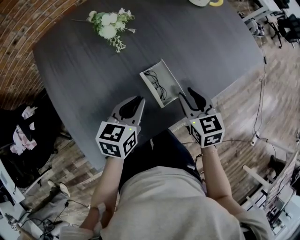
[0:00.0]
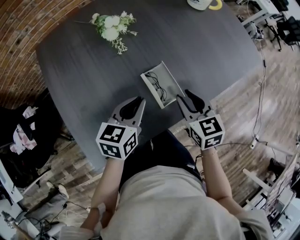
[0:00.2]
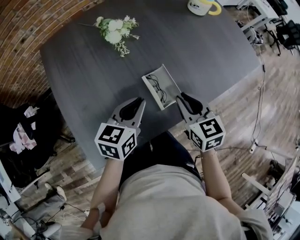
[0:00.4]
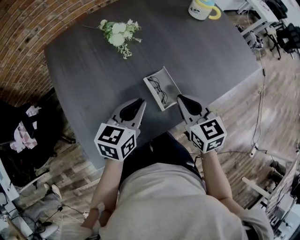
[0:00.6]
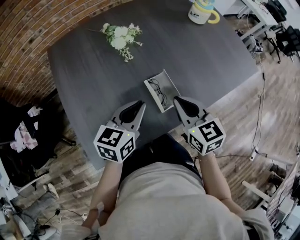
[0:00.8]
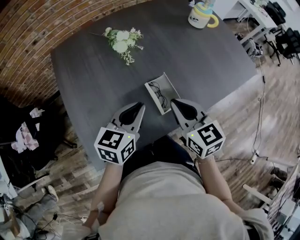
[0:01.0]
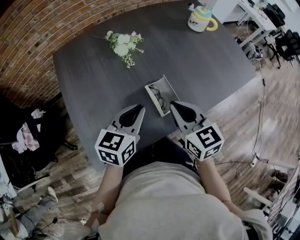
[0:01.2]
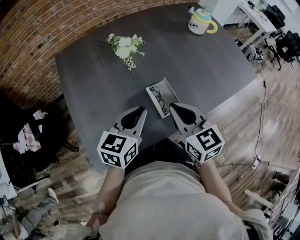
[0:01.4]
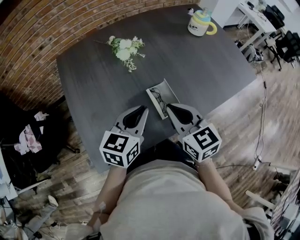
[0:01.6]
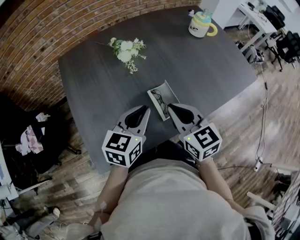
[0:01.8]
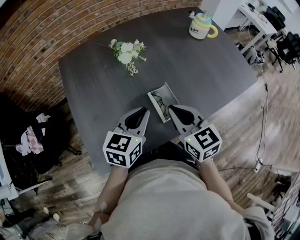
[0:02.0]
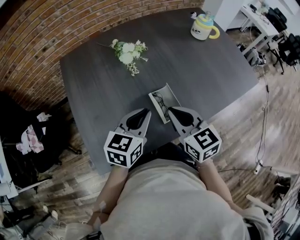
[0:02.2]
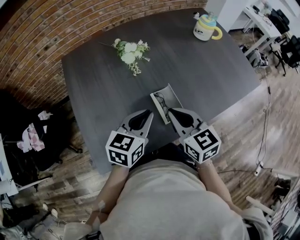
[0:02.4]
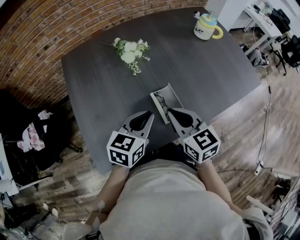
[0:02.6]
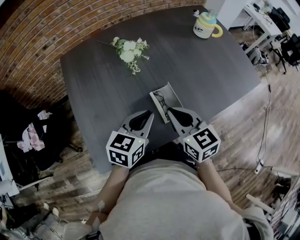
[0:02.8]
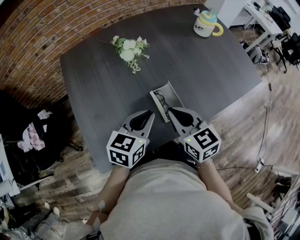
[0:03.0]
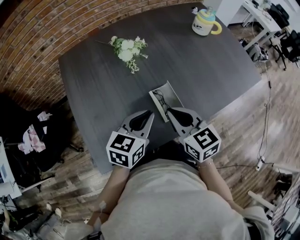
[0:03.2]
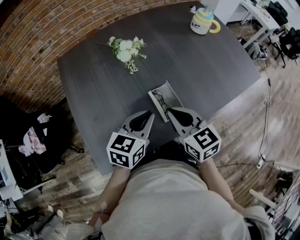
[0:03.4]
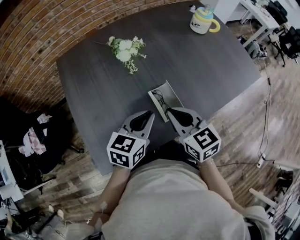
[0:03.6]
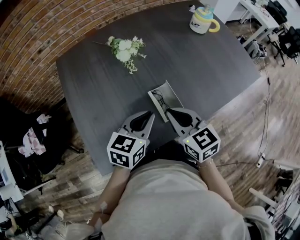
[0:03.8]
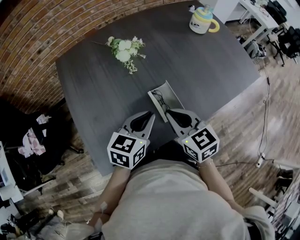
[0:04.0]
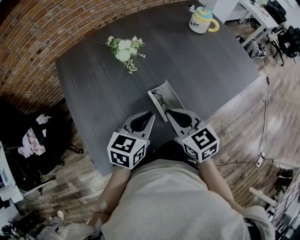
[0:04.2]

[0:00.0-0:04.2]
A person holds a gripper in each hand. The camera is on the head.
0:00.0 to 0:01.4: The right gripper goes roughly 15 cm upward and to the left, rotates approximately 20 degrees, and closes up. Meanwhile the left gripper is displaced upward by some 10 cm.
0:01.4 to 0:04.2: The grippers stay close to where they were, moving slightly.

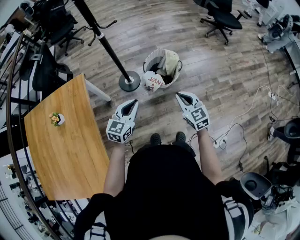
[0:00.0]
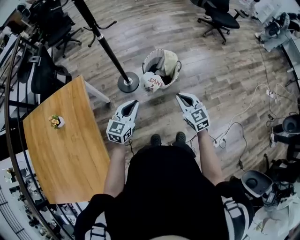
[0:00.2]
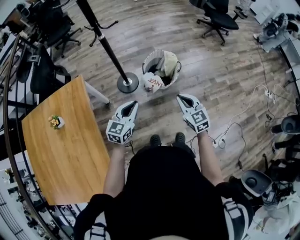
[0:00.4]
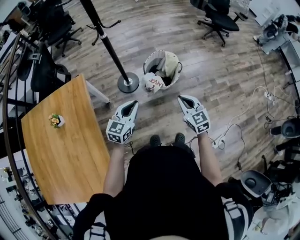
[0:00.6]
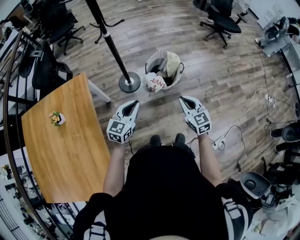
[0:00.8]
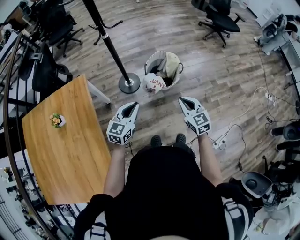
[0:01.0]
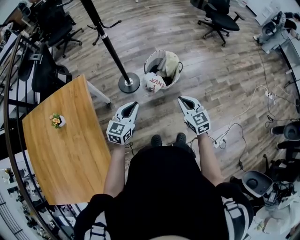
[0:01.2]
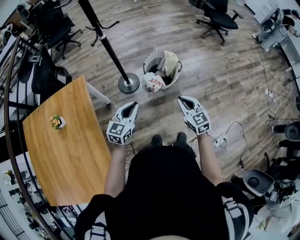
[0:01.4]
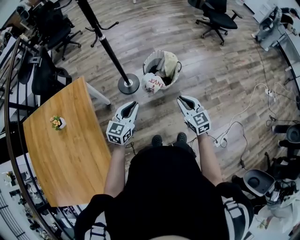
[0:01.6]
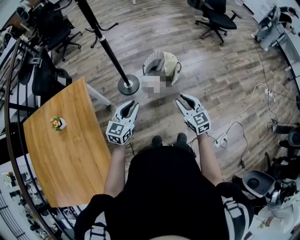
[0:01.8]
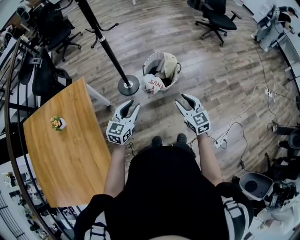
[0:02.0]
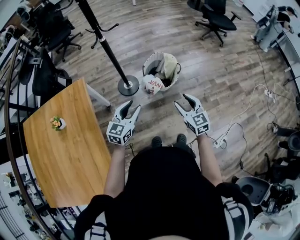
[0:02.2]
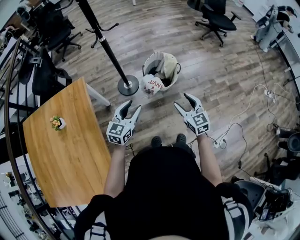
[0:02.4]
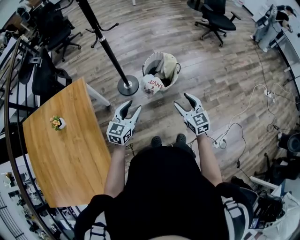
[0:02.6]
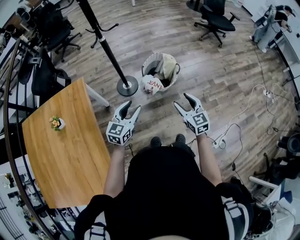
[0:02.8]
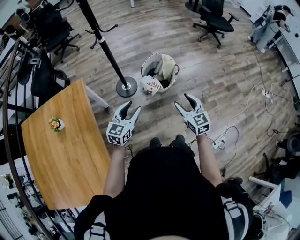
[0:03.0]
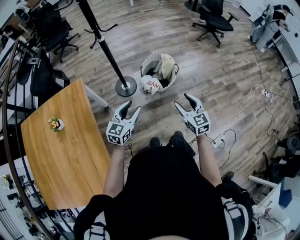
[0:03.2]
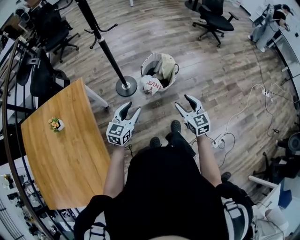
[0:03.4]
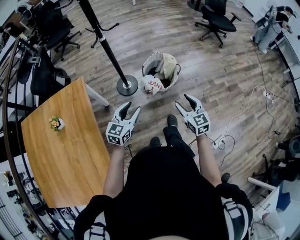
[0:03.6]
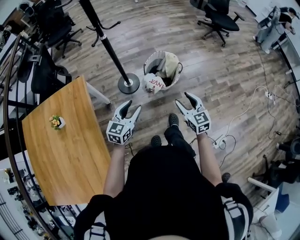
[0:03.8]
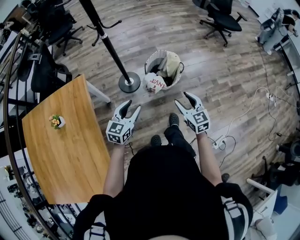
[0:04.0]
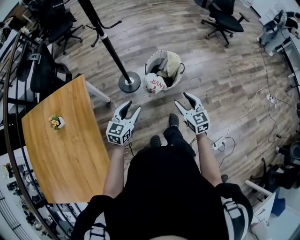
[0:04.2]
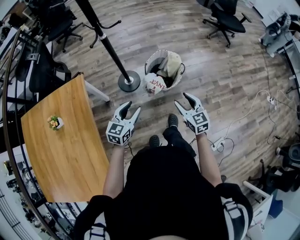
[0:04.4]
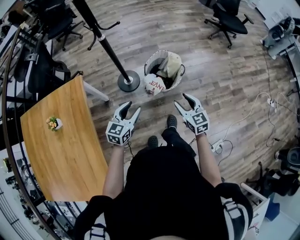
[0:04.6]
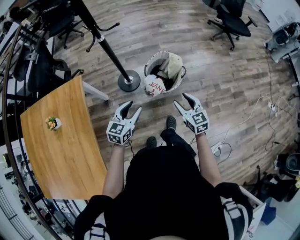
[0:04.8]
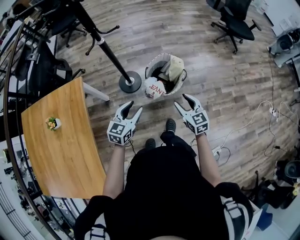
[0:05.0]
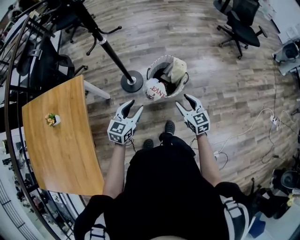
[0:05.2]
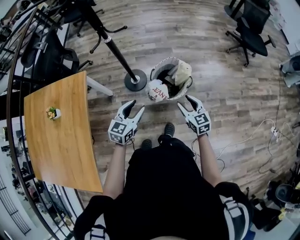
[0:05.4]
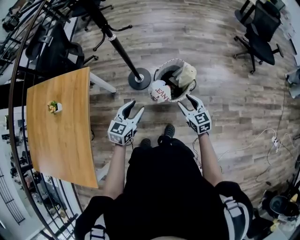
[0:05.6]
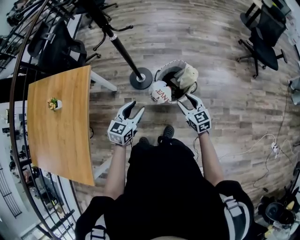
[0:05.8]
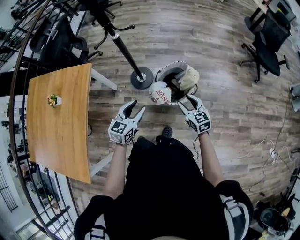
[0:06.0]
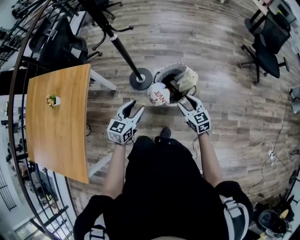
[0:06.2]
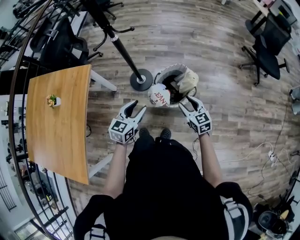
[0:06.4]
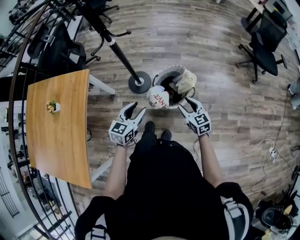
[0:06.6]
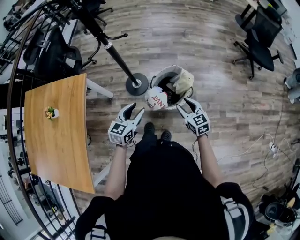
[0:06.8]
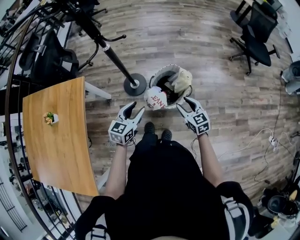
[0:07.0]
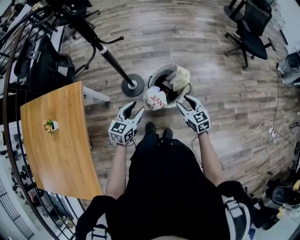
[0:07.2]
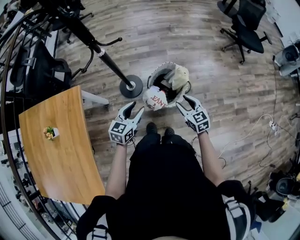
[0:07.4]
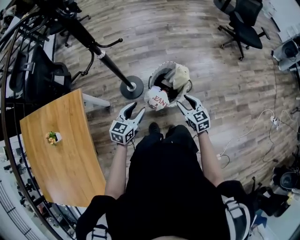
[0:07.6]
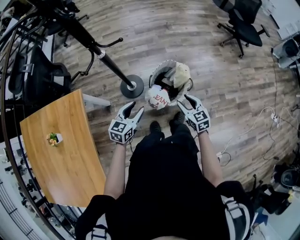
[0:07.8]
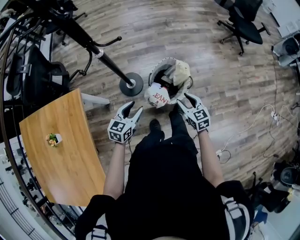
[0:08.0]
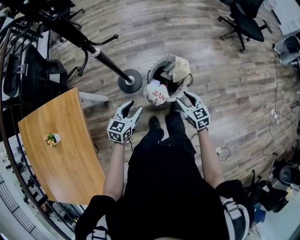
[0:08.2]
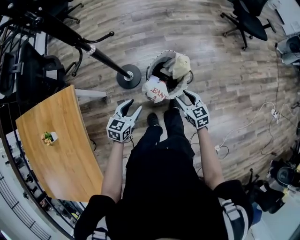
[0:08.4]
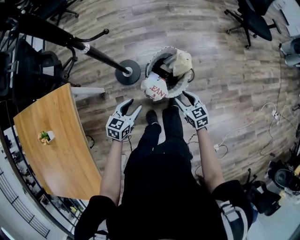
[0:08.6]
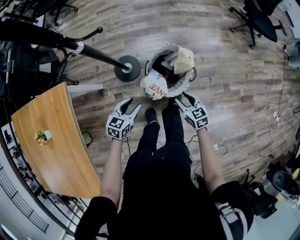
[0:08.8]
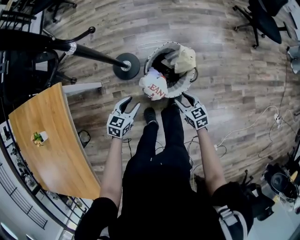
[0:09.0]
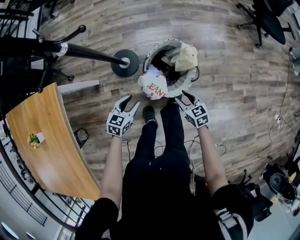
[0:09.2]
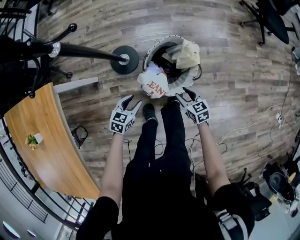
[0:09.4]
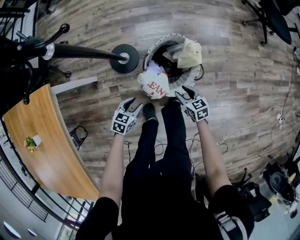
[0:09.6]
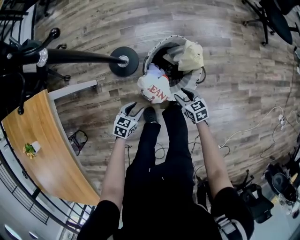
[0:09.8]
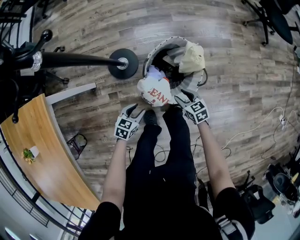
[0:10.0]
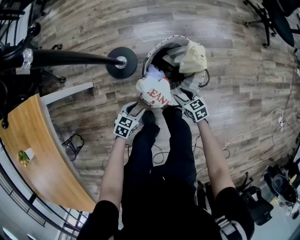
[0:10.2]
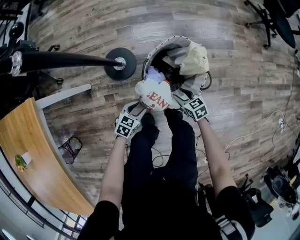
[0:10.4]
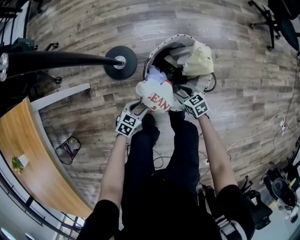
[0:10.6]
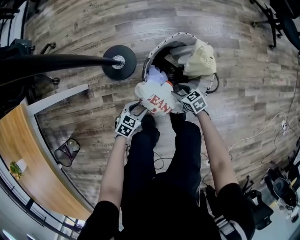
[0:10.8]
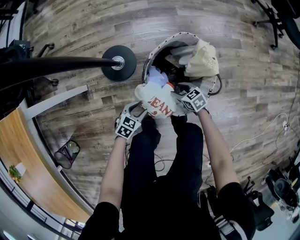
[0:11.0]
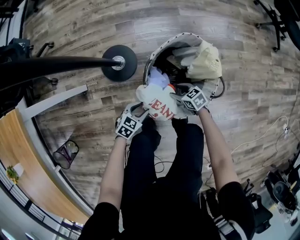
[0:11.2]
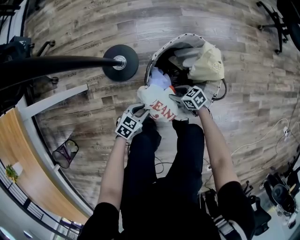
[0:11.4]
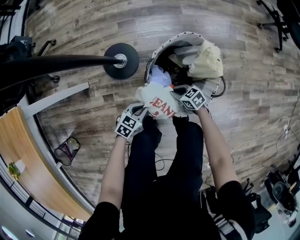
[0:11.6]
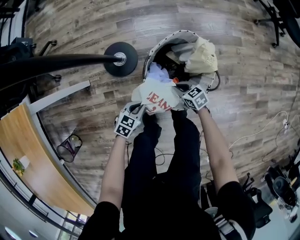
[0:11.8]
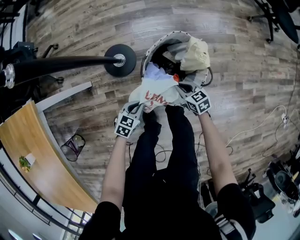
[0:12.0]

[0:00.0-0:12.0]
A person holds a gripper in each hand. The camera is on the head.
0:00.0 to 0:01.6: The grippers make only small movements.
0:01.6 to 0:03.0: The left gripper opens up, while the right gripper opens up.
0:03.0 to 0:04.4: The grippers both shift forward by roughly 5 cm.
0:04.4 to 0:06.0: The grippers both shift forward and to the right by approximately 15 cm. The right gripper swivels approximately 20 degrees.
0:06.0 to 0:07.6: The left gripper travels forward by approximately 10 cm.
0:07.6 to 0:09.0: The two grippers go approximately 20 cm downward.
0:09.0 to 0:10.4: The grippers both shift downward by roughly 25 cm.
0:10.4 to 0:12.0: The right gripper travels downward and back again, approximately 15 cm each way, and closes its fingers; the left gripper travels downward and back again, approximately 10 cm each way, and closes up.

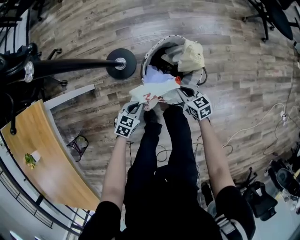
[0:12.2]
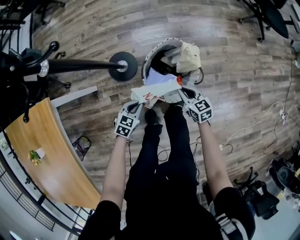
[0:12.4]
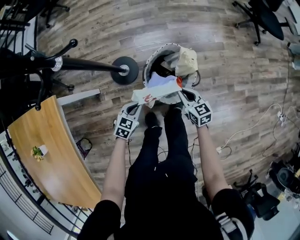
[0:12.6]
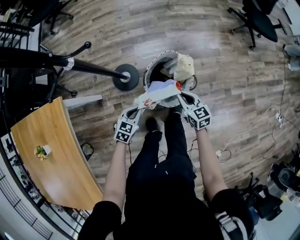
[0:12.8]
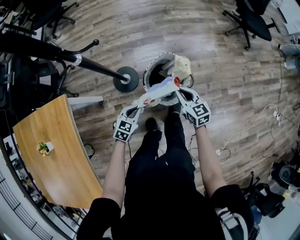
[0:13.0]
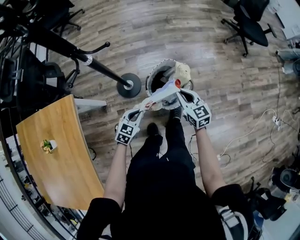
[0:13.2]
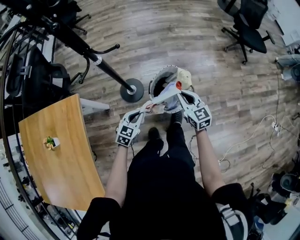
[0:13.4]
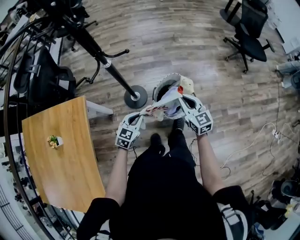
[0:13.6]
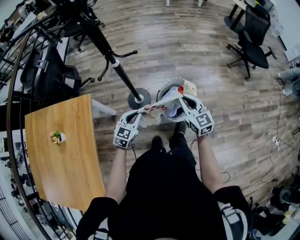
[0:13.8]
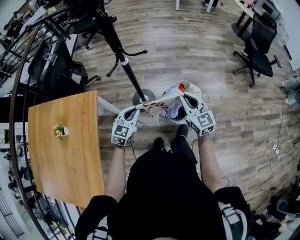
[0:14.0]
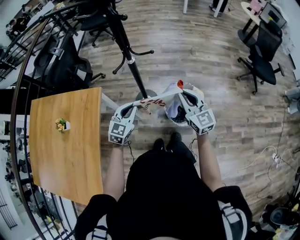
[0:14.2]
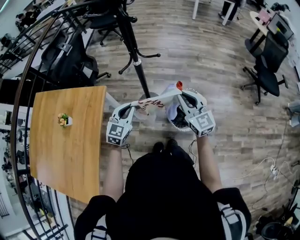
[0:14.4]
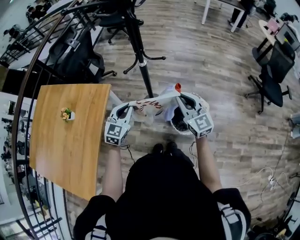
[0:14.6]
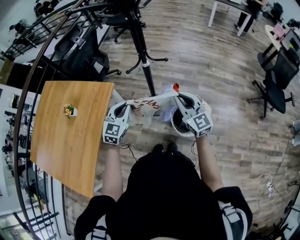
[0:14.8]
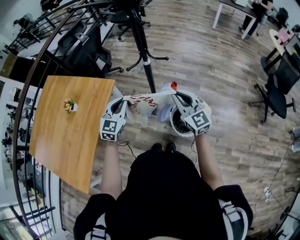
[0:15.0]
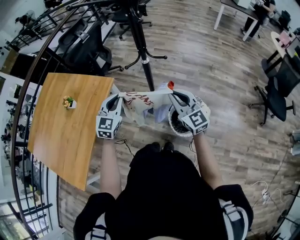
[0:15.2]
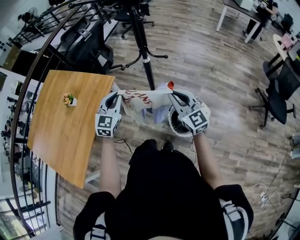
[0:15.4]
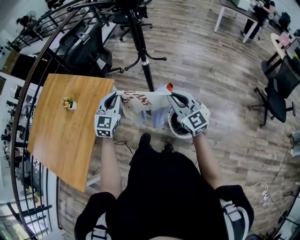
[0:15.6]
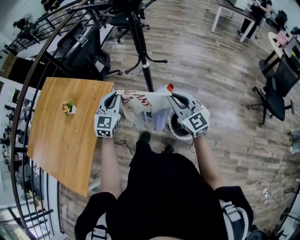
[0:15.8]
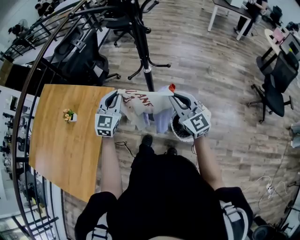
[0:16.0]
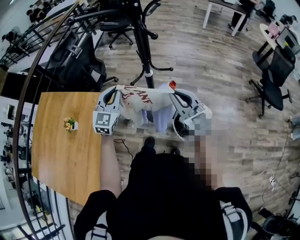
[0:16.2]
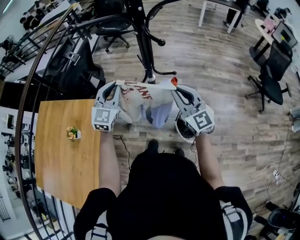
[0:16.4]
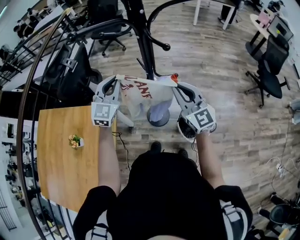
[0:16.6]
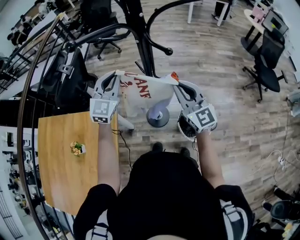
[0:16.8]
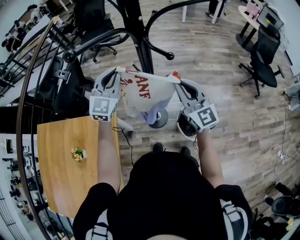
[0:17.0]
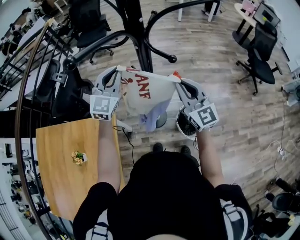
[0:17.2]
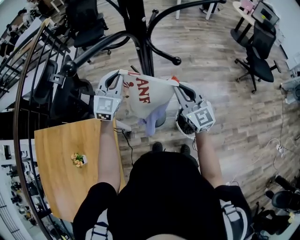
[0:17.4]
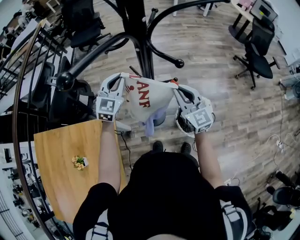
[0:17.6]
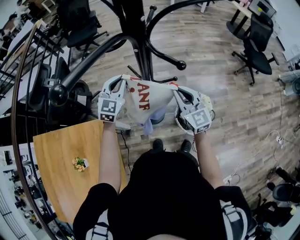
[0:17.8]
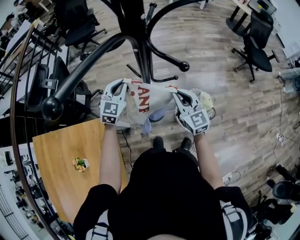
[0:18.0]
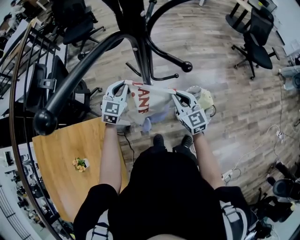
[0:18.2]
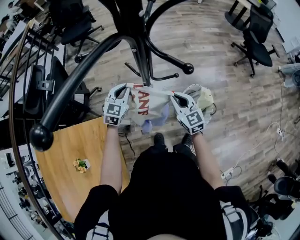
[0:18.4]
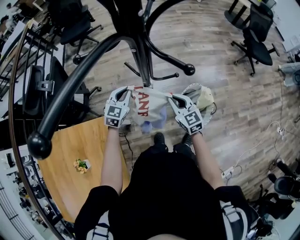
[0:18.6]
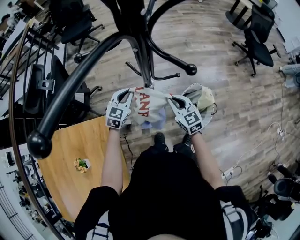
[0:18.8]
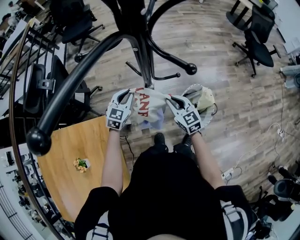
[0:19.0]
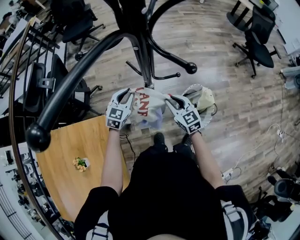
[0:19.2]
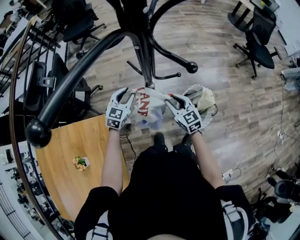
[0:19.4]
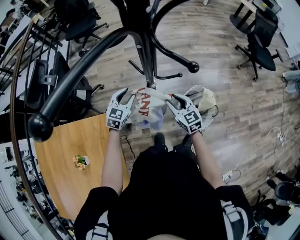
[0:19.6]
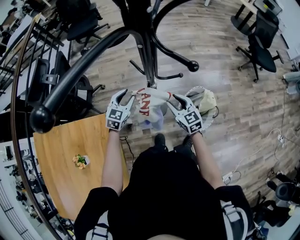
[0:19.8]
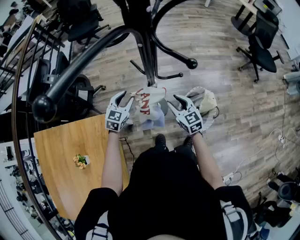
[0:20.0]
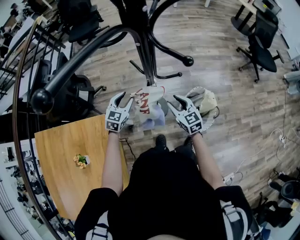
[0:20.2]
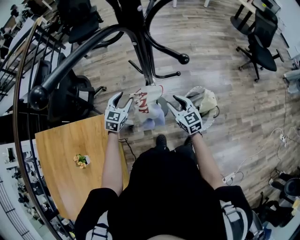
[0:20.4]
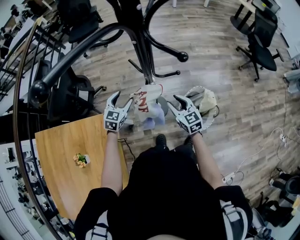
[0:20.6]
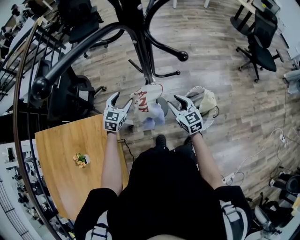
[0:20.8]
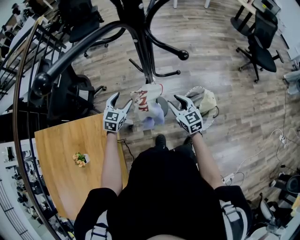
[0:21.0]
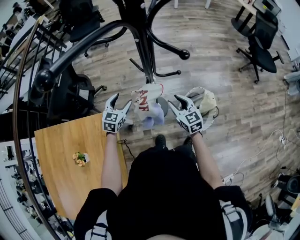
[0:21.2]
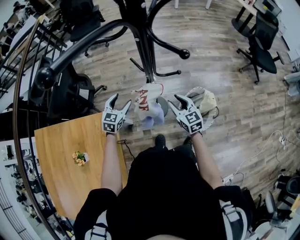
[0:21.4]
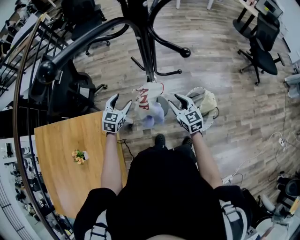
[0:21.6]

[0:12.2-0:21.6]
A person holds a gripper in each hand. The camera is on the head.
0:12.2 to 0:13.8: The two grippers go some 40 cm upward. The right gripper swivels about 40 degrees; the left gripper turns by approximately 30 degrees.
0:13.8 to 0:15.4: The two grippers go roughly 15 cm upward. The left gripper swivels about 40 degrees; the right gripper turns by roughly 30 degrees.
0:15.4 to 0:17.0: The right gripper shifts by some 15 cm, and turns by approximately 30 degrees. Meanwhile the left gripper ends up some 30 cm from where it was, and rotates roughly 30 degrees.
0:17.0 to 0:18.4: The two grippers go some 20 cm downward. The right gripper swivels roughly 30 degrees, while the left gripper turns by about 30 degrees.
0:18.4 to 0:20.0: Both grippers move downward, some 5 cm. The left gripper opens its fingers. The right gripper opens its fingers.
0:20.0 to 0:21.6: The left gripper opens.
